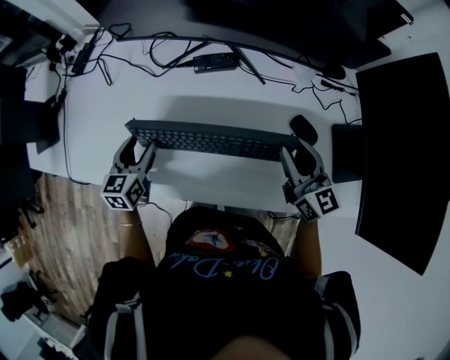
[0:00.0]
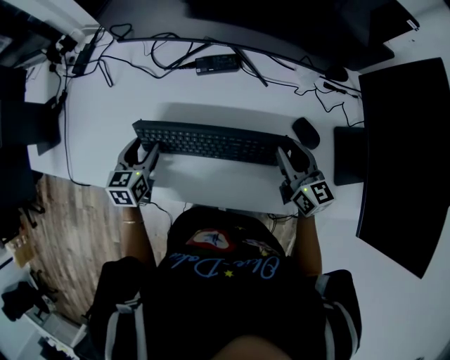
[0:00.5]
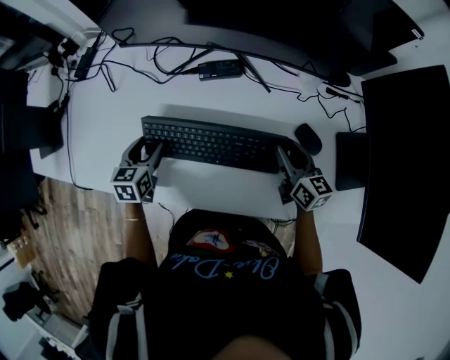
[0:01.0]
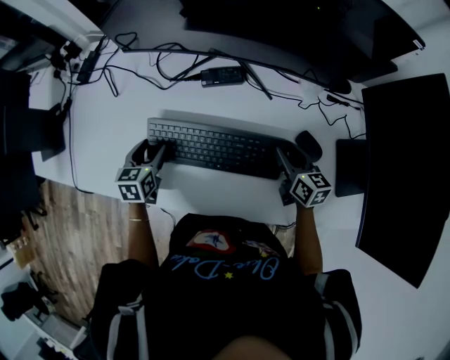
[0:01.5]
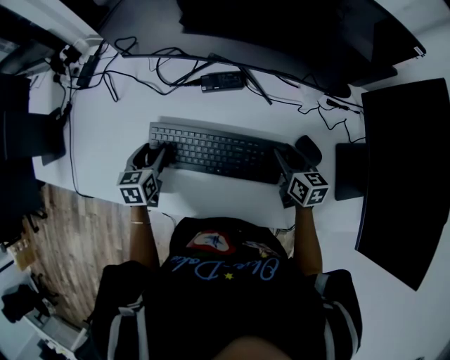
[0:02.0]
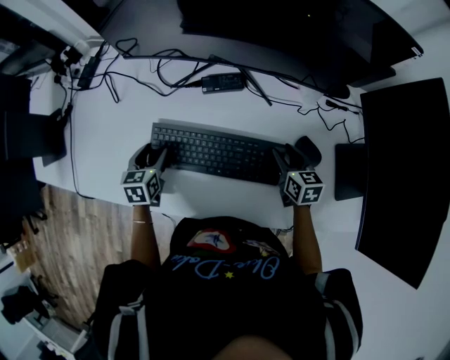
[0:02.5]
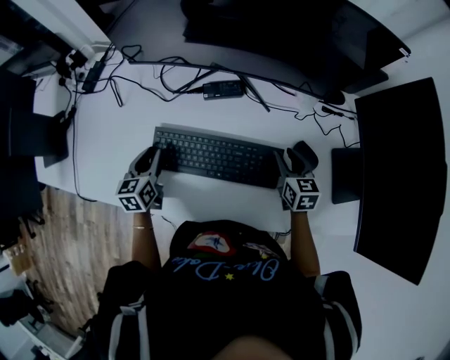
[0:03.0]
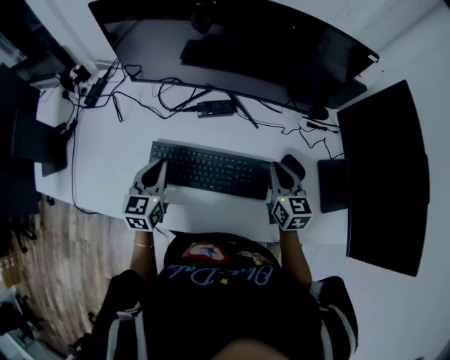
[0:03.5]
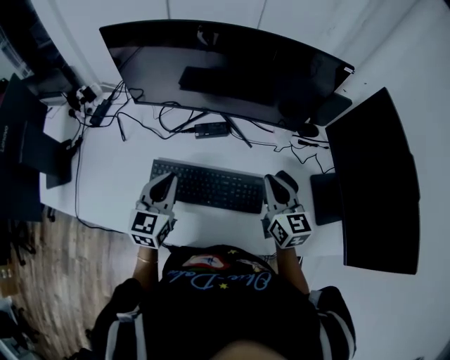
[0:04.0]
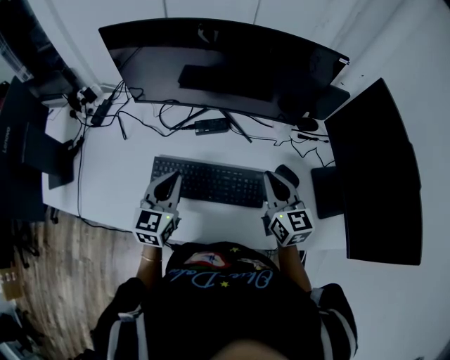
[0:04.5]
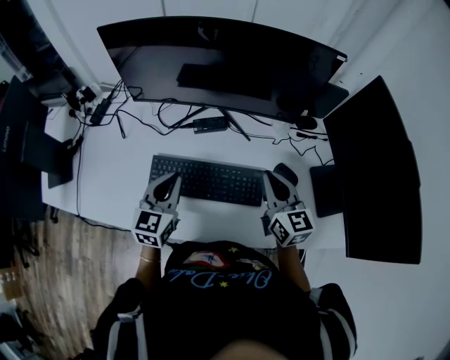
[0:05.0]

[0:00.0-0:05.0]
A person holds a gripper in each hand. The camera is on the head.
0:00.0 to 0:02.5: The right gripper travels downward by approximately 15 cm, and points its fingers approximately 30 degrees further downward, while the left gripper heads downward, covering approximately 5 cm.
0:02.5 to 0:05.0: The right gripper shifts approximately 20 cm upward, changes its angle by about 30 degrees, and closes up. The left gripper travels upward and to the right by approximately 20 cm, turns by approximately 30 degrees, and closes its fingers.

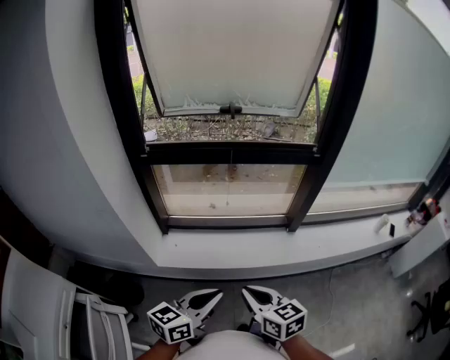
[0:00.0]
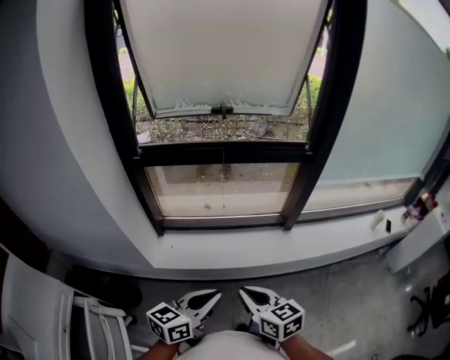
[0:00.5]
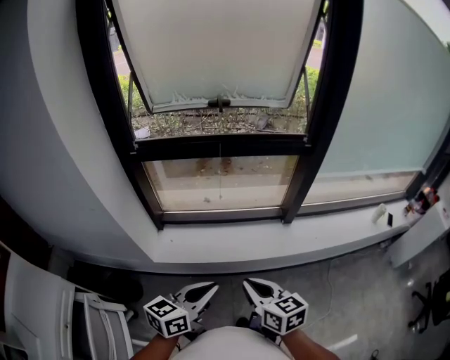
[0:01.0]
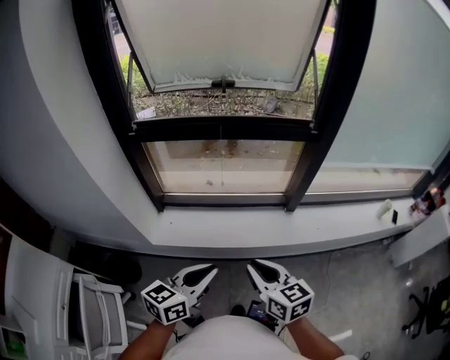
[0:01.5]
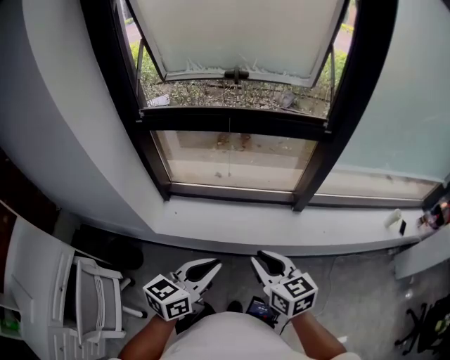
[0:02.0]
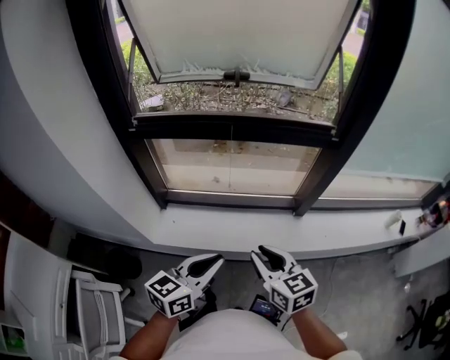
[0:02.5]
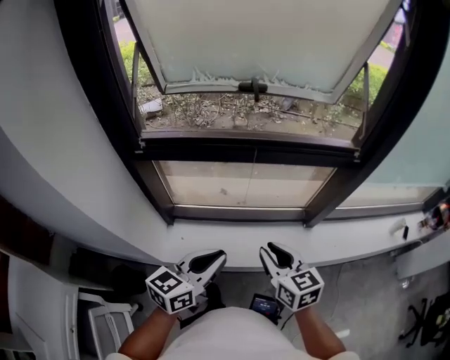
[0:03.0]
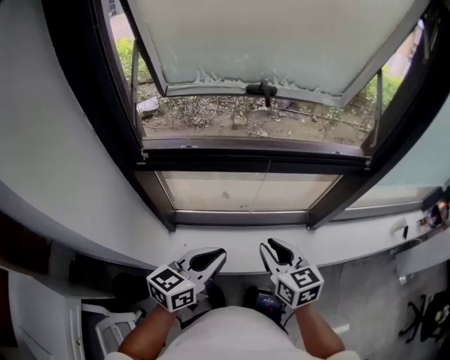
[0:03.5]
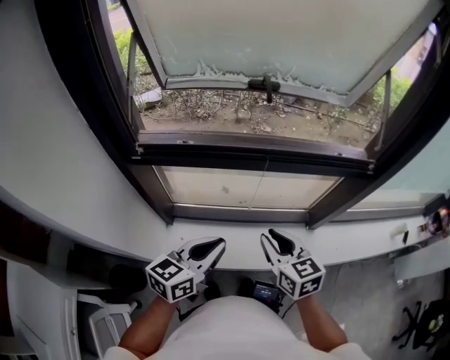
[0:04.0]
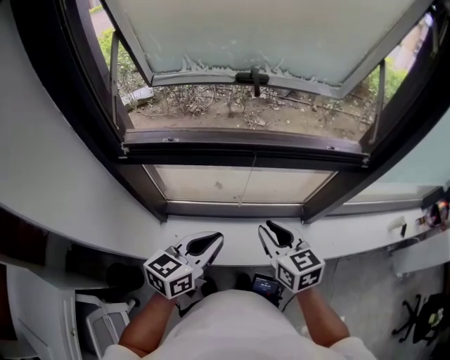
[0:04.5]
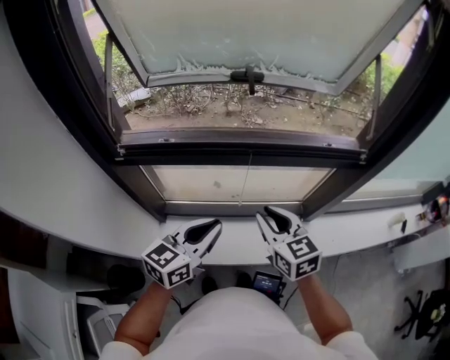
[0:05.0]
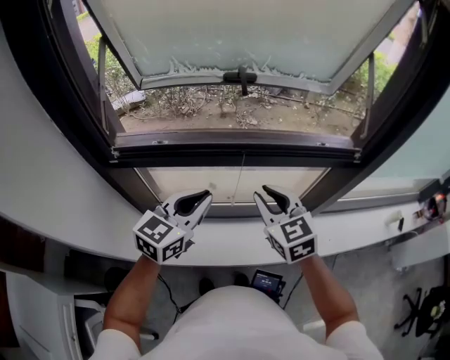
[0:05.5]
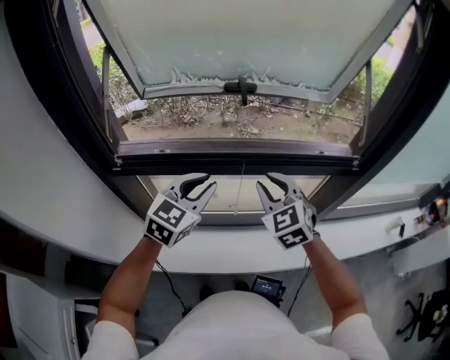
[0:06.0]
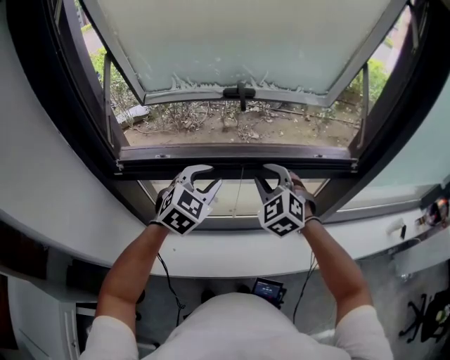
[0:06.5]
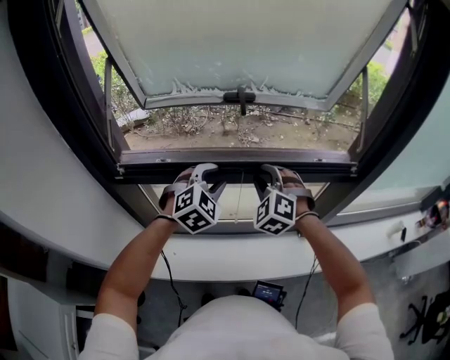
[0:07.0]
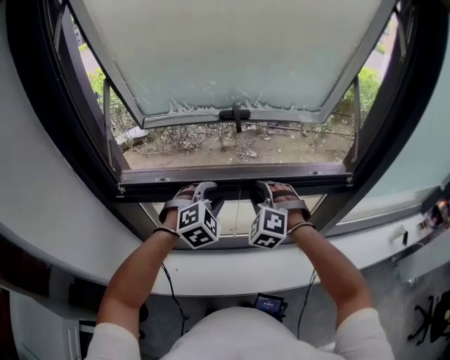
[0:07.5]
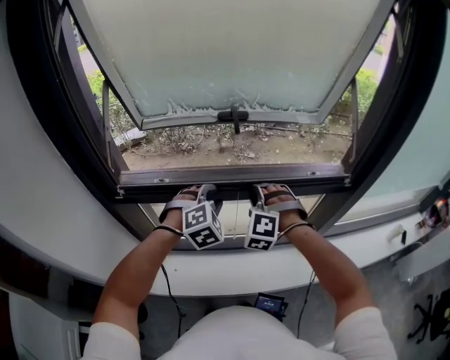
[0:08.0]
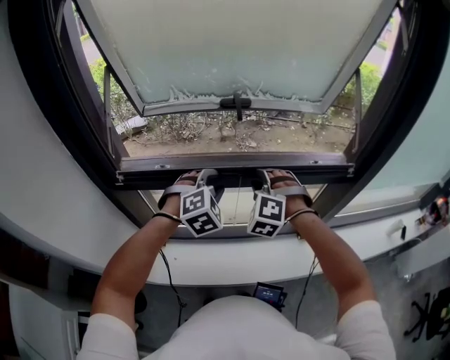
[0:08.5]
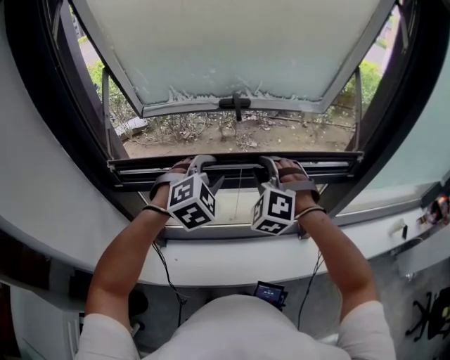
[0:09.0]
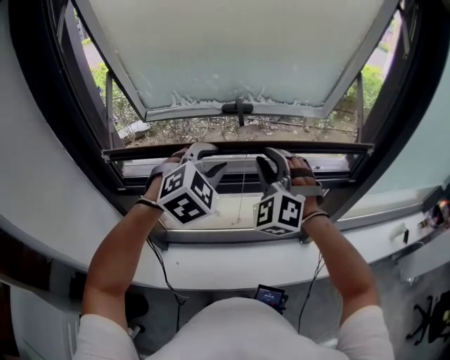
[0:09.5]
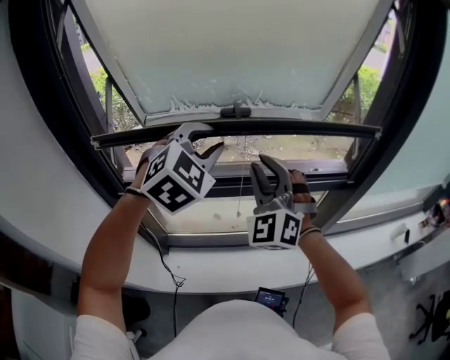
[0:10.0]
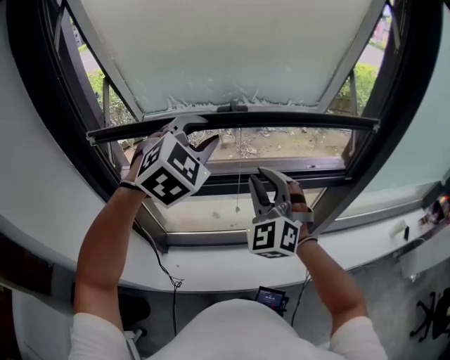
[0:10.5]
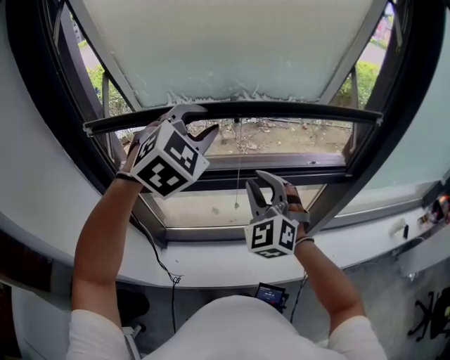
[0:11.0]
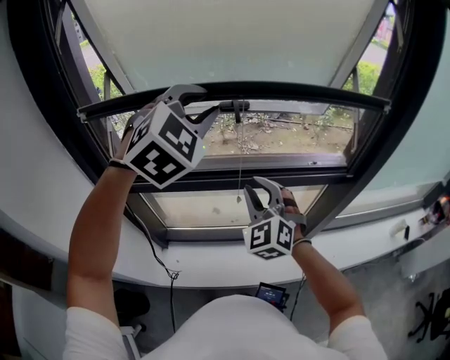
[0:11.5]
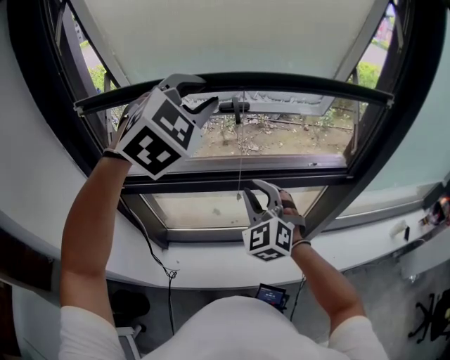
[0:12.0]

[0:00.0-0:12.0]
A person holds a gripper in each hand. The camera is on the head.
0:00.0 to 0:02.0: The left gripper moves to the right, about 5 cm. The right gripper moves to the right and forward, roughly 10 cm.
0:02.0 to 0:04.0: Both grippers move forward and to the left, approximately 30 cm.
0:04.0 to 0:06.0: The right gripper heads forward and upward, covering about 15 cm, and turns by some 40 degrees. Meanwhile the left gripper goes approximately 15 cm forward, and changes its angle by approximately 40 degrees.
0:06.0 to 0:08.0: Both grippers move forward, some 5 cm. The right gripper rolls counterclockwise, seen from behind, by some 40 degrees, while the left gripper turns by roughly 50 degrees.
0:08.0 to 0:10.0: Both grippers move upward, roughly 20 cm. The right gripper points its fingers about 30 degrees further upward.
0:10.0 to 0:12.0: The left gripper is displaced upward by some 10 cm; the right gripper moves downward, approximately 10 cm.

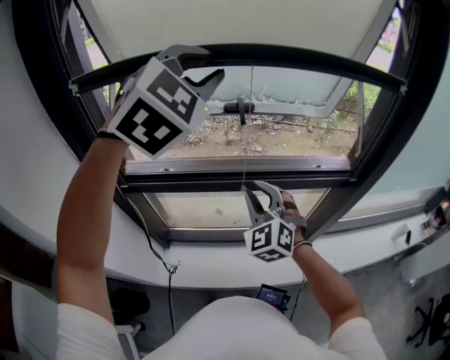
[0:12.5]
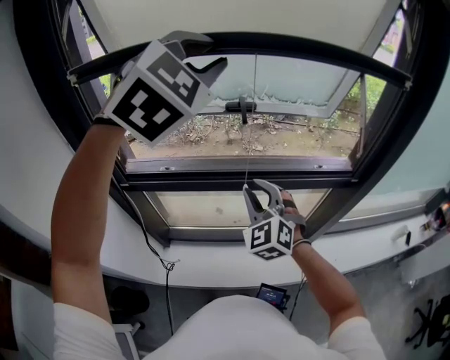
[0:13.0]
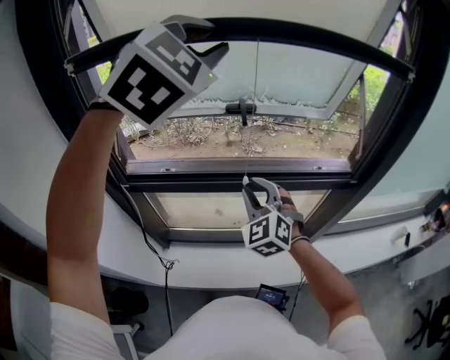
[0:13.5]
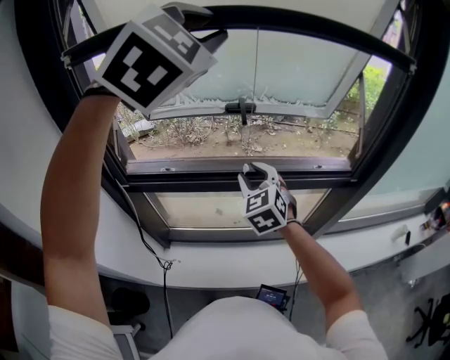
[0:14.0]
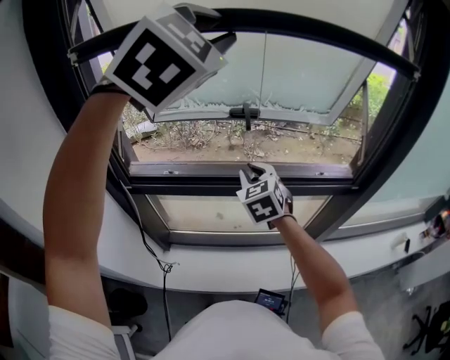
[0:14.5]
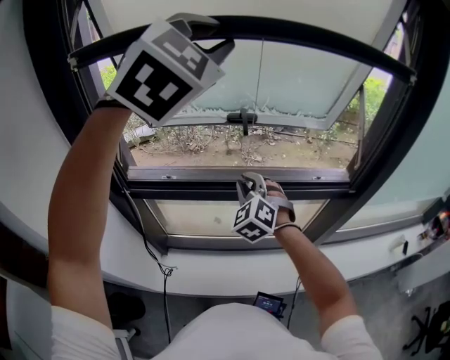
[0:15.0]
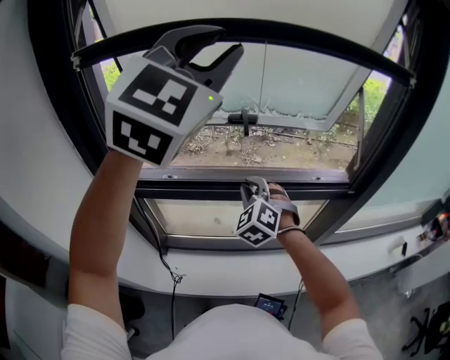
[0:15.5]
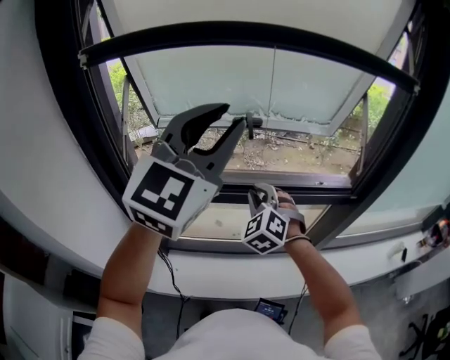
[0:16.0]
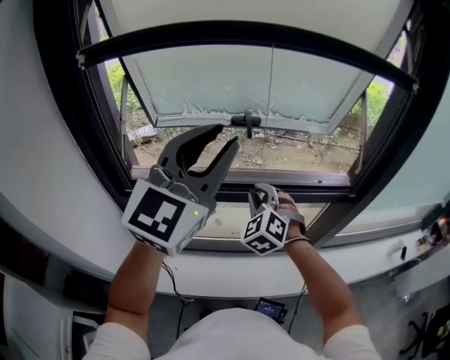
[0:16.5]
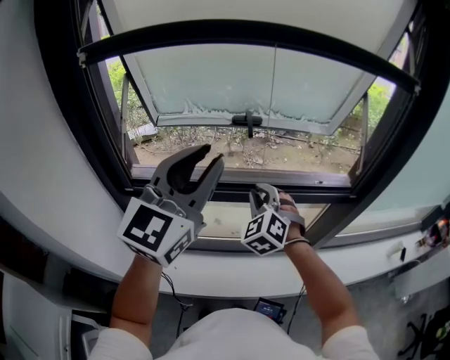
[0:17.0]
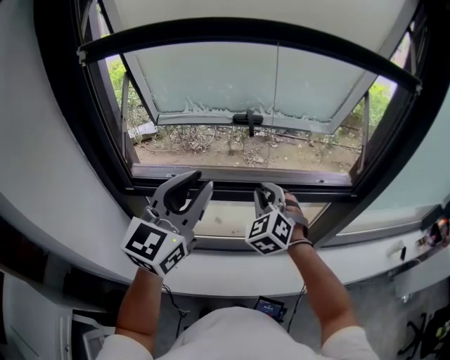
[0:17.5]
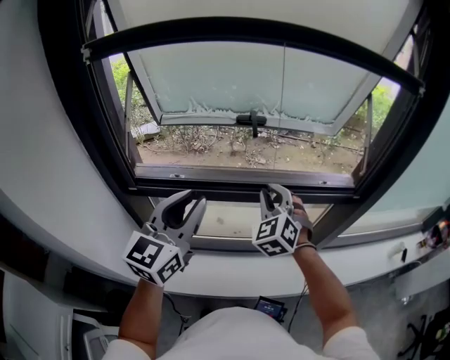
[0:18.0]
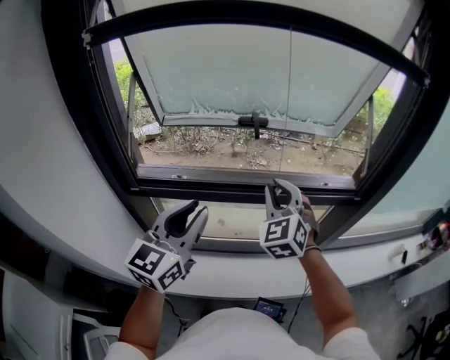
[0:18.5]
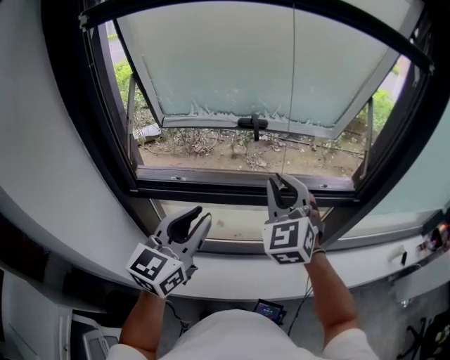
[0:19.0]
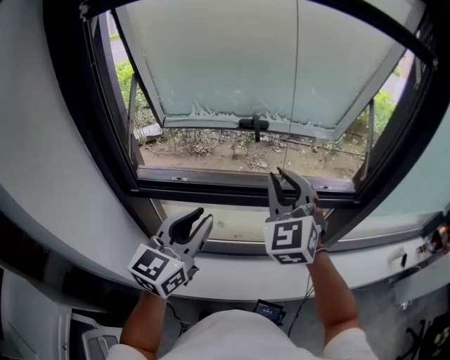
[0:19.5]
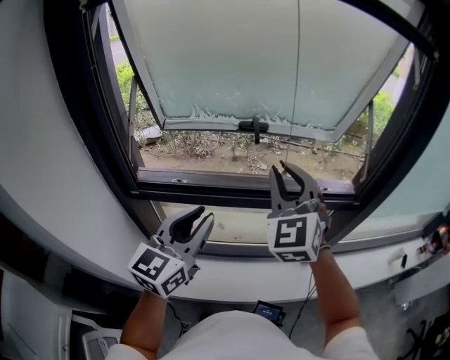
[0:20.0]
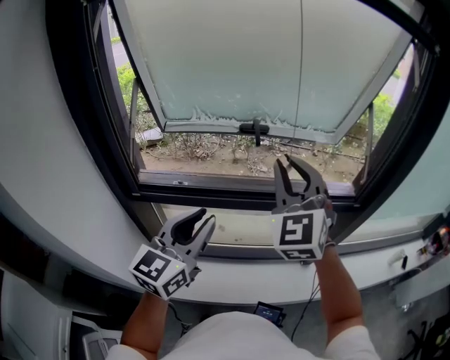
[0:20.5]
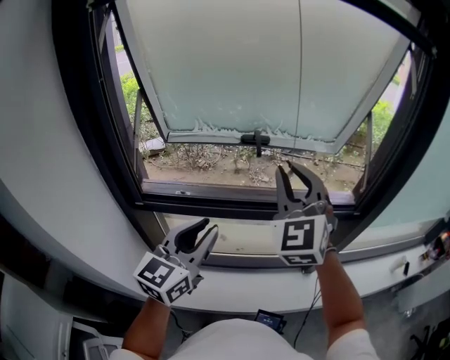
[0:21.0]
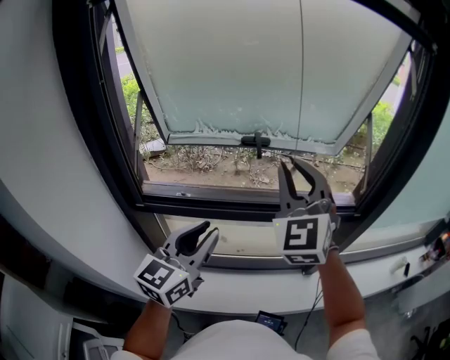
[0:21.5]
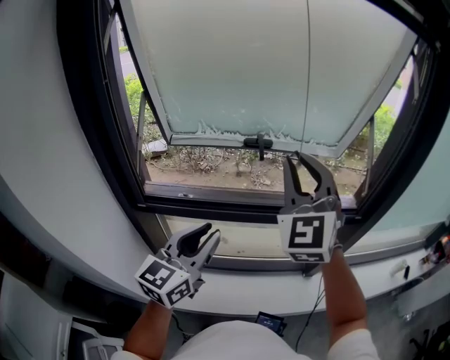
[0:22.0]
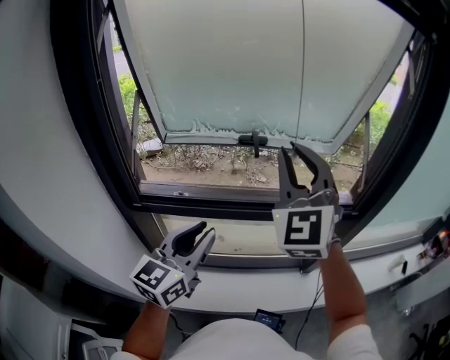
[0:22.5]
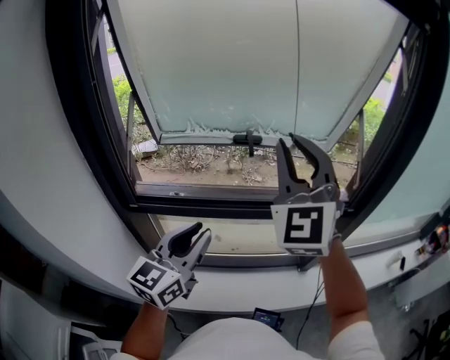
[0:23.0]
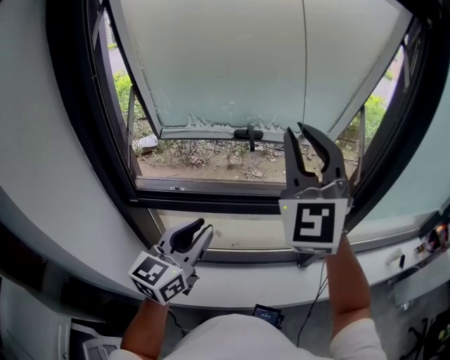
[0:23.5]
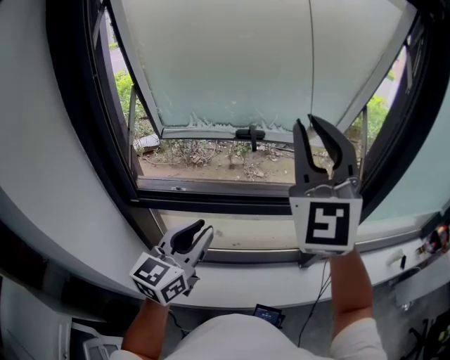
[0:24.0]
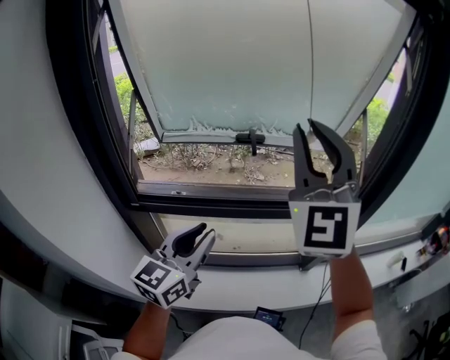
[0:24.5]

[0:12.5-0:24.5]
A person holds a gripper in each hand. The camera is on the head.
0:12.5 to 0:14.5: The left gripper is displaced upward by about 10 cm. The right gripper is displaced forward by some 10 cm, and swivels about 20 degrees.
0:14.5 to 0:16.5: The right gripper shifts by approximately 5 cm, and swivels some 30 degrees; the left gripper goes approximately 15 cm downward and backward, and turns by about 40 degrees.
0:16.5 to 0:18.5: The left gripper shifts some 15 cm downward, and turns by roughly 20 degrees. Meanwhile the right gripper shifts roughly 5 cm upward.
0:18.5 to 0:20.5: The right gripper travels upward by approximately 15 cm.
0:20.5 to 0:22.5: The right gripper shifts some 5 cm upward.
0:22.5 to 0:24.5: The right gripper moves upward, about 5 cm.
